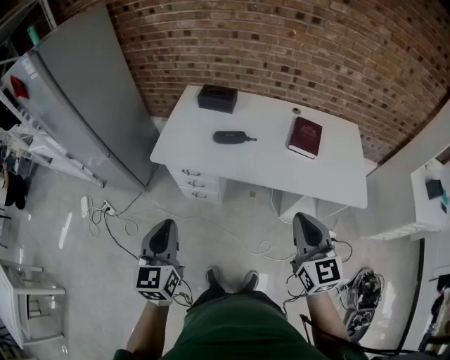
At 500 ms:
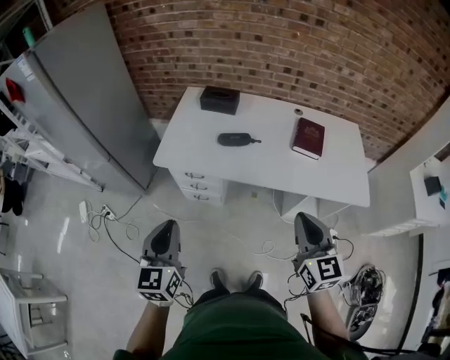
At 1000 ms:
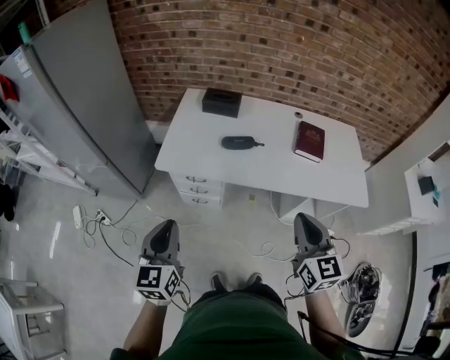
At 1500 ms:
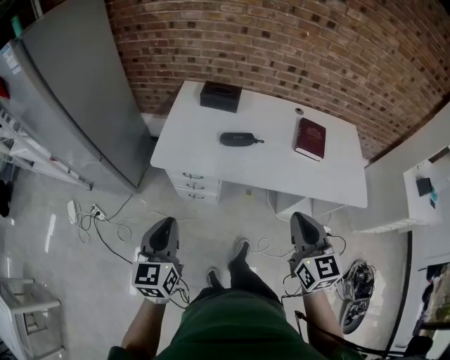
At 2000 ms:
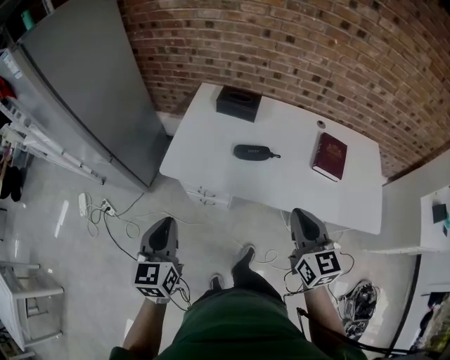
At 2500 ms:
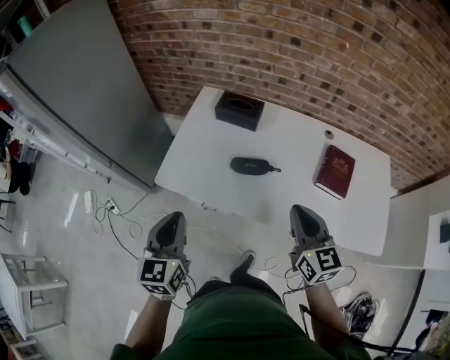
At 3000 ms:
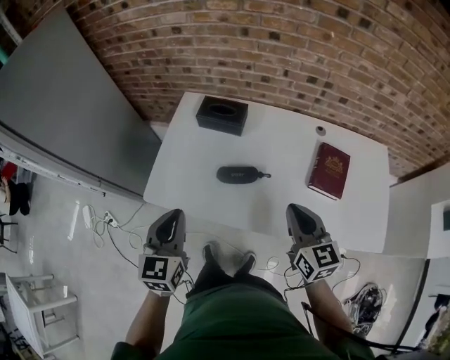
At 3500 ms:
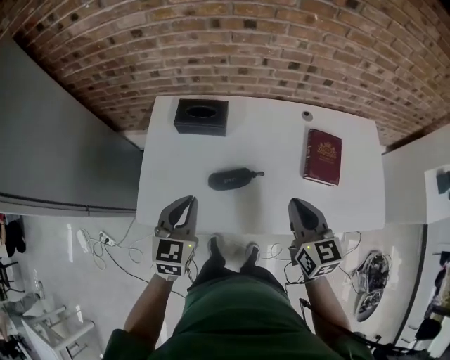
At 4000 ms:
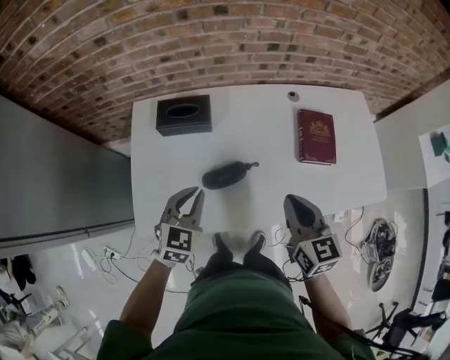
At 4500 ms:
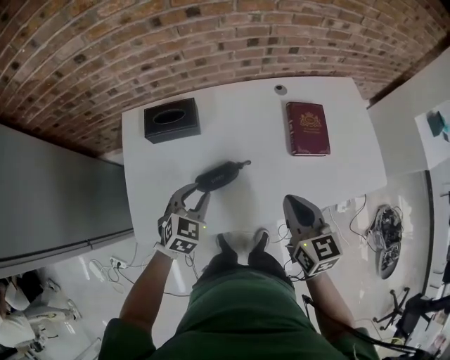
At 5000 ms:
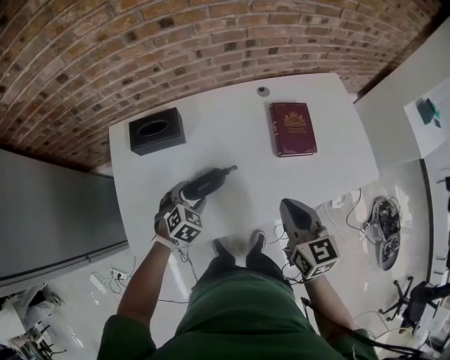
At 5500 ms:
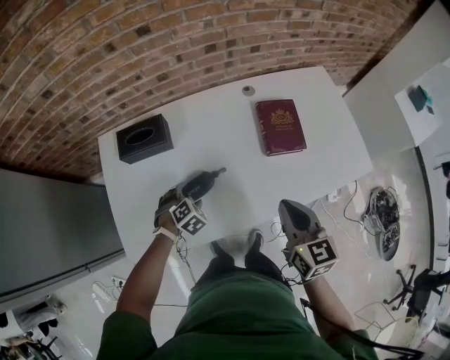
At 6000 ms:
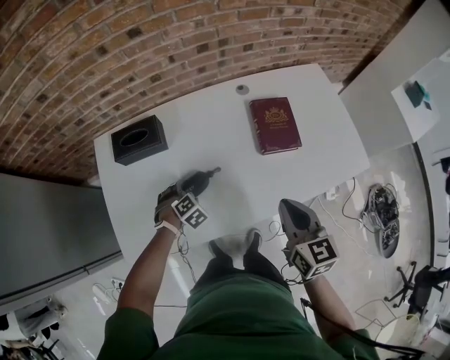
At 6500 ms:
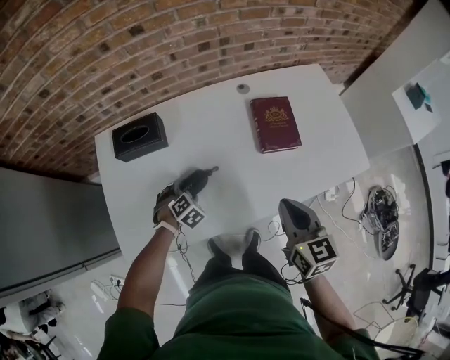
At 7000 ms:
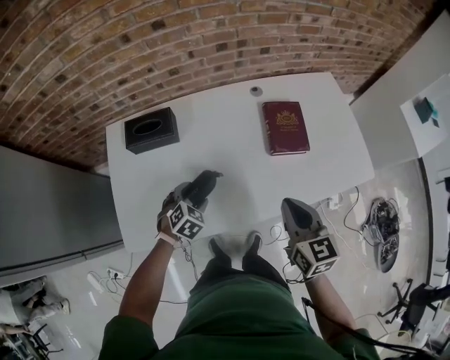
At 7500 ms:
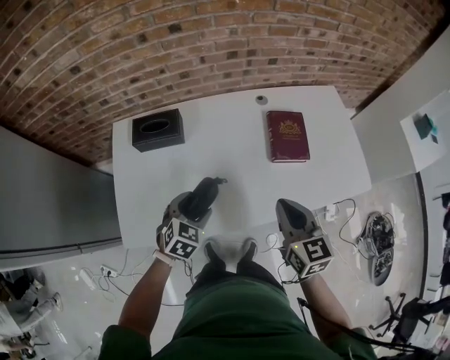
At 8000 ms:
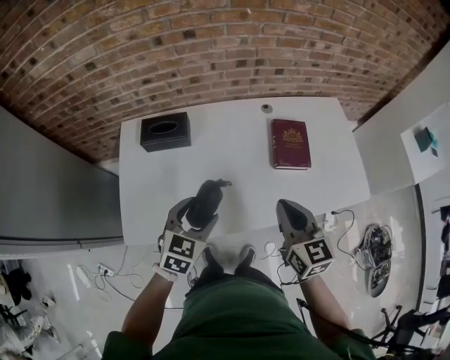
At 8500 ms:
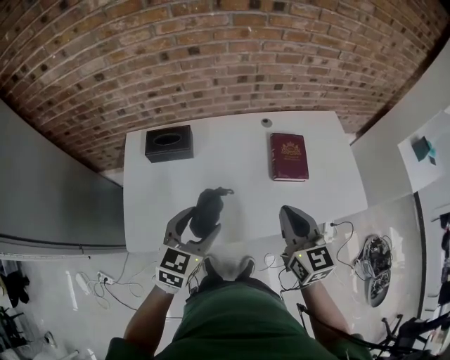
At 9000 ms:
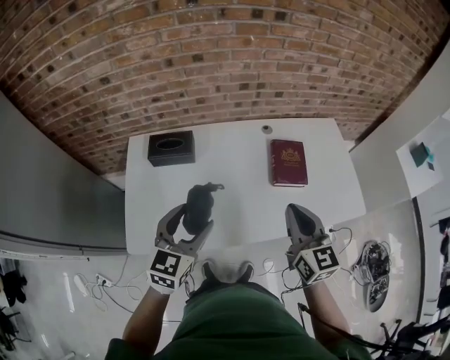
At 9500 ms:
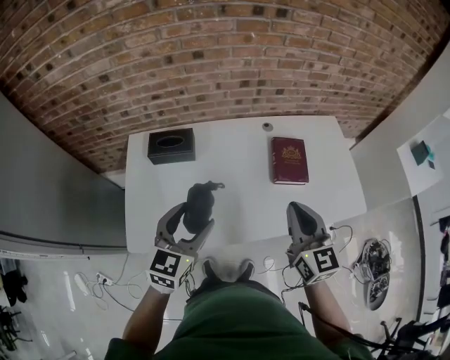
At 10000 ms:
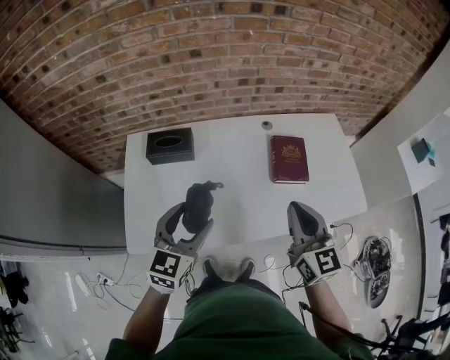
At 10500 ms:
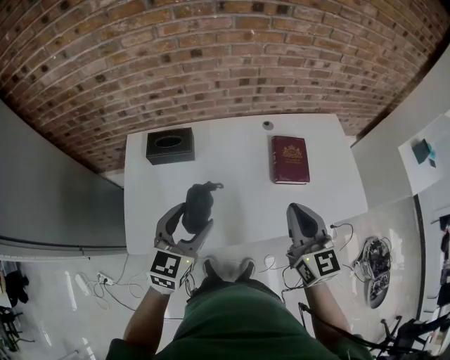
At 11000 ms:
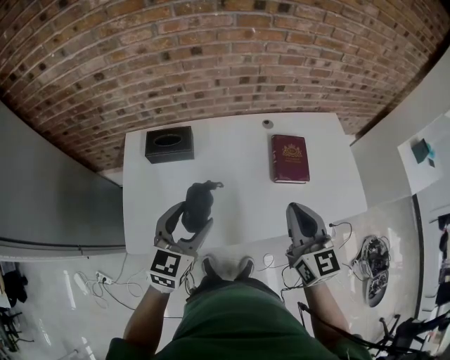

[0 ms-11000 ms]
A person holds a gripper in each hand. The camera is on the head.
0 ms to 2000 ms: The two grippers go roughly 20 cm forward and to the left.
2000 ms to 3500 ms: The left gripper travels forward and to the right by about 30 cm, and rotates roughly 30 degrees; the right gripper travels forward and to the right by about 20 cm.
3500 ms to 5500 ms: The left gripper heads downward and to the right, covering roughly 25 cm, tips its fingers downward by approximately 40 degrees, and opens. The right gripper shifts some 10 cm to the right.
5500 ms to 7500 ms: The left gripper shifts some 15 cm upward and backward, and rotates some 30 degrees.
7500 ms to 9000 ms: The left gripper moves upward, approximately 20 cm, and turns by some 30 degrees. Meanwhile the right gripper moves upward, roughly 10 cm.
9000 ms to 11000 ms: The grippers make only small movements.

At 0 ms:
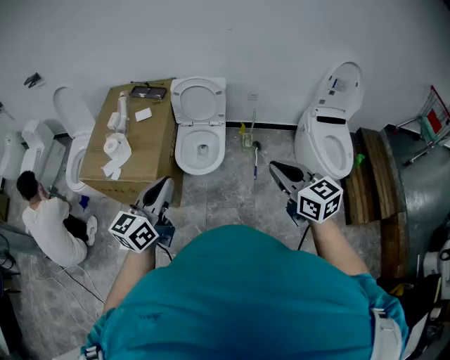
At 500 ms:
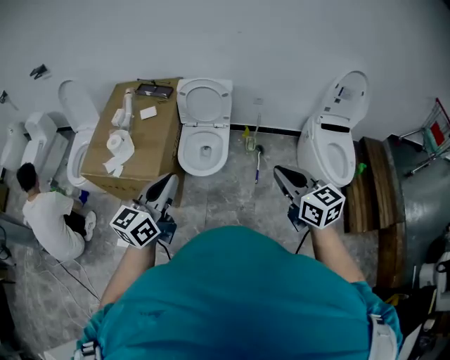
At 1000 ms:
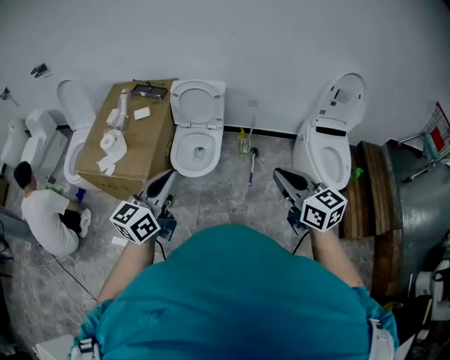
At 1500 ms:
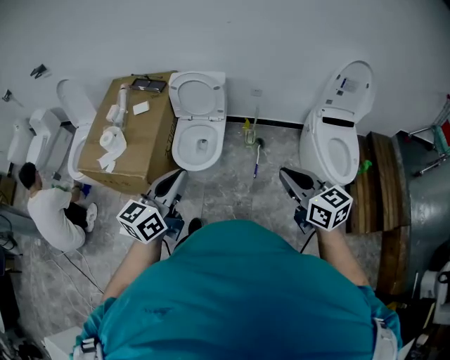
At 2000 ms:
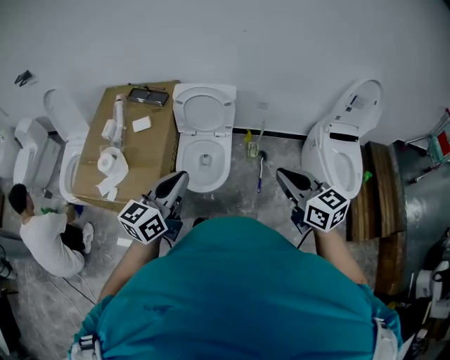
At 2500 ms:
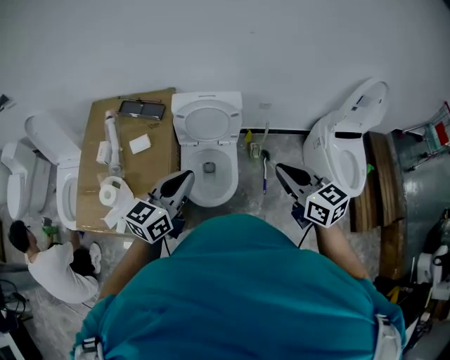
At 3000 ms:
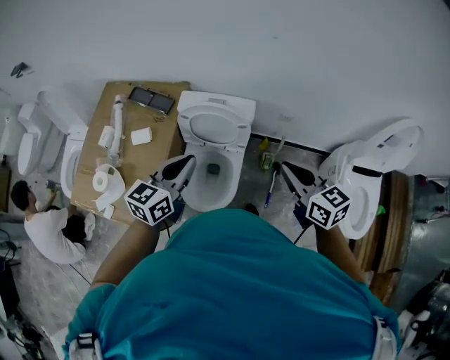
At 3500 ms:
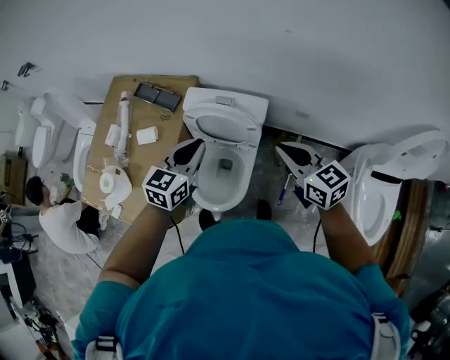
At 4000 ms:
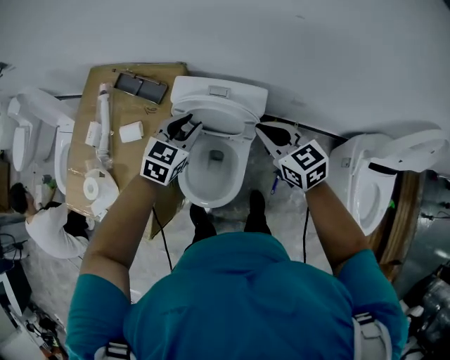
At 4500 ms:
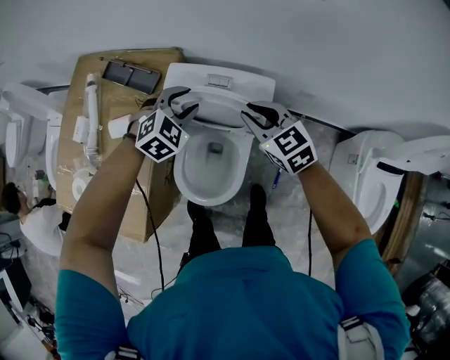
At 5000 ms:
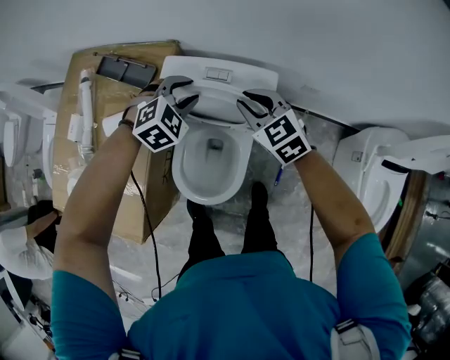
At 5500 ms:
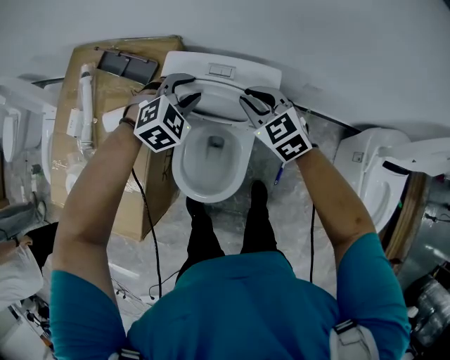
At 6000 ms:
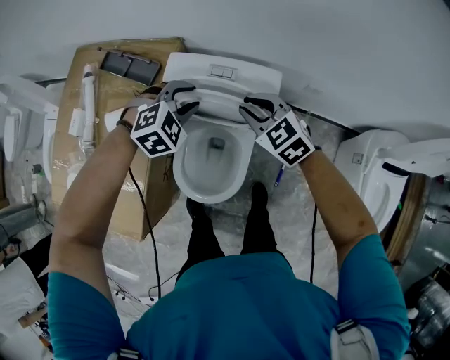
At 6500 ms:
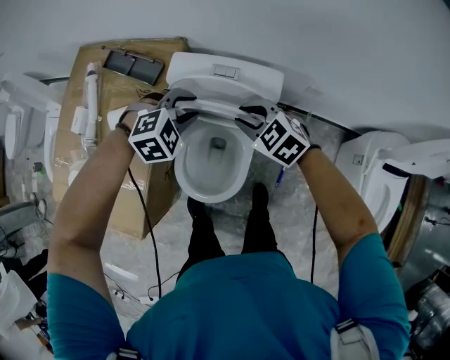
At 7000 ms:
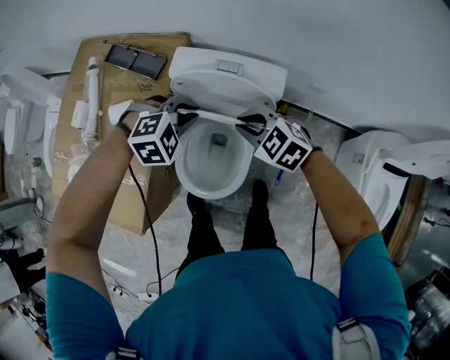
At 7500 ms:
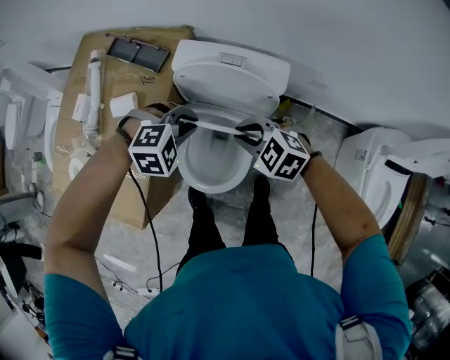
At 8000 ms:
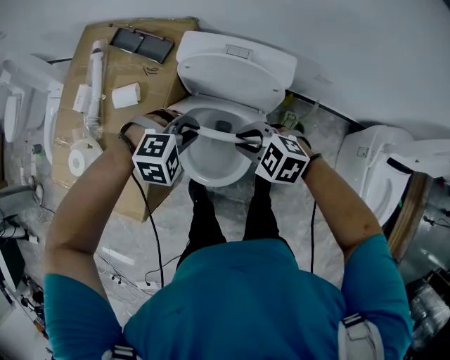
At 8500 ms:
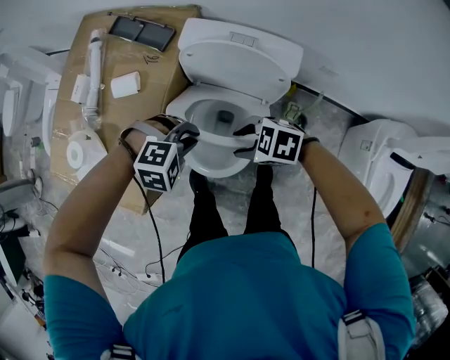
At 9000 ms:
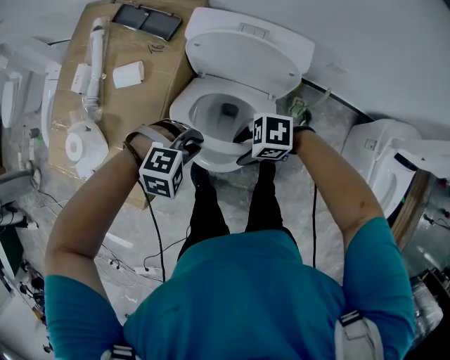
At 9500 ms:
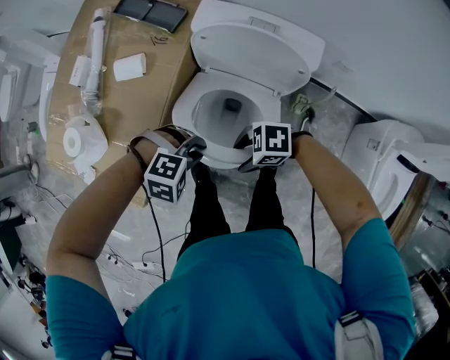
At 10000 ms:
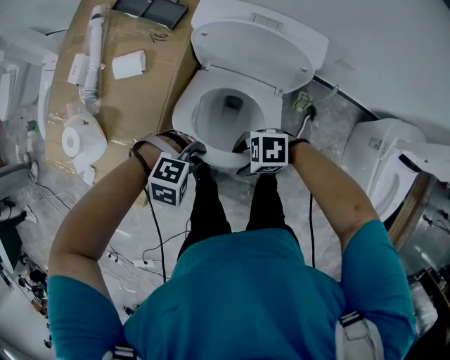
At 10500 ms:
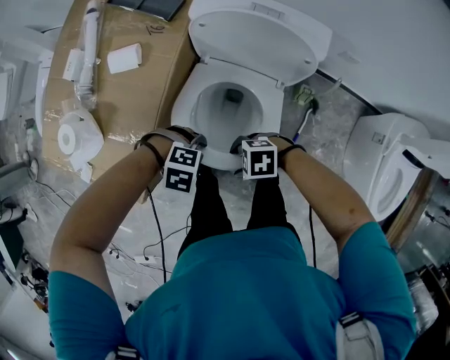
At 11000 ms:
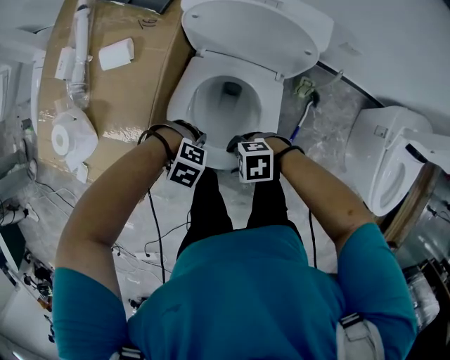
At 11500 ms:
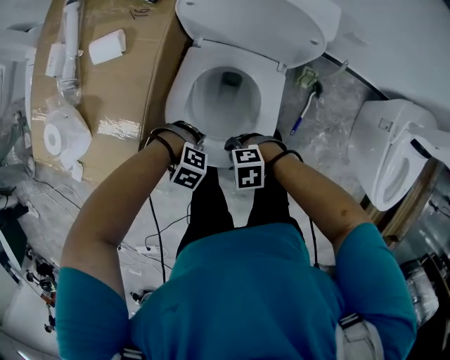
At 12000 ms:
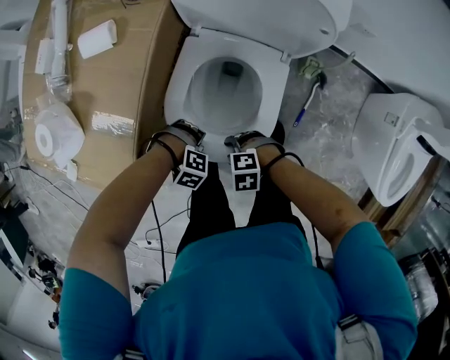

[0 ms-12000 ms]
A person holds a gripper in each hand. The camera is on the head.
0 ms to 2000 ms: Both grippers move forward, roughly 20 cm.
2000 ms to 4000 ms: The pair of grippers is taken forward, some 50 cm. The left gripper travels downward by approximately 20 cm, and tilts its fingers approximately 30 degrees downward.
4000 ms to 6000 ms: The left gripper travels downward by about 10 cm, and twists roughly 40 degrees clockwise, seen from behind. Meanwhile the right gripper heads downward and forward, covering roughly 15 cm, and changes its angle by some 20 degrees.
6000 ms to 8000 ms: The left gripper shifts by approximately 15 cm, rotates about 20 degrees, and closes up. The right gripper moves approximately 15 cm, and swivels roughly 30 degrees.
8000 ms to 10000 ms: The left gripper moves some 15 cm; the right gripper ends up some 20 cm from where it was, swivels some 40 degrees, and opens.
10000 ms to 12000 ms: The two grippers go some 20 cm downward. The left gripper changes its angle by roughly 30 degrees, and opens. The right gripper rotates roughly 20 degrees.

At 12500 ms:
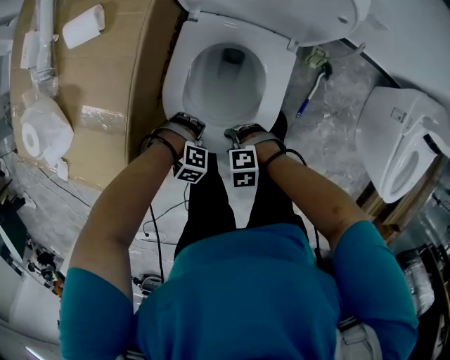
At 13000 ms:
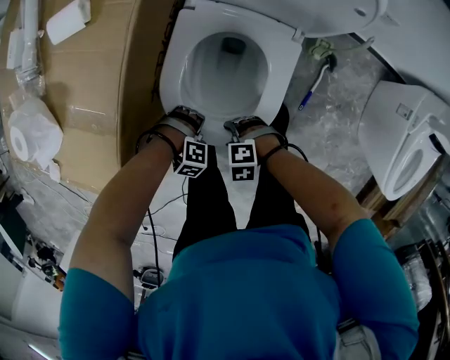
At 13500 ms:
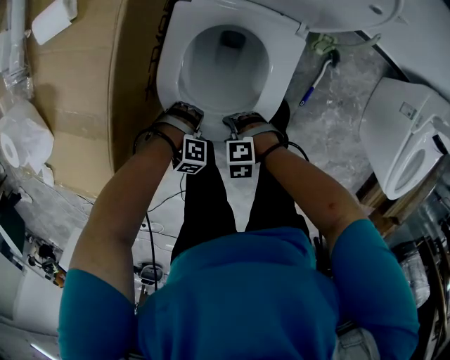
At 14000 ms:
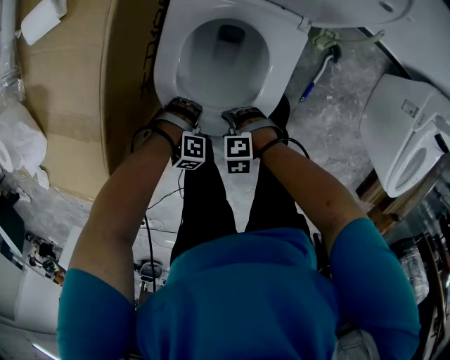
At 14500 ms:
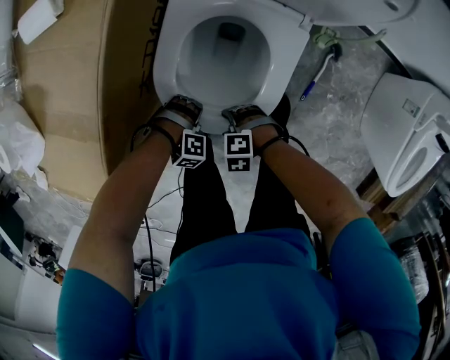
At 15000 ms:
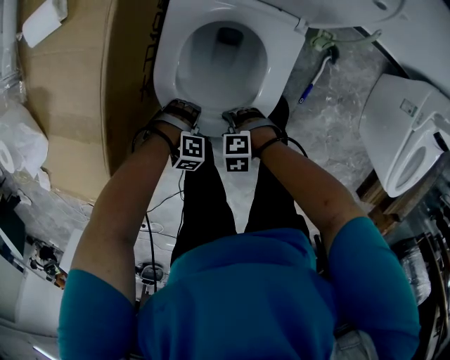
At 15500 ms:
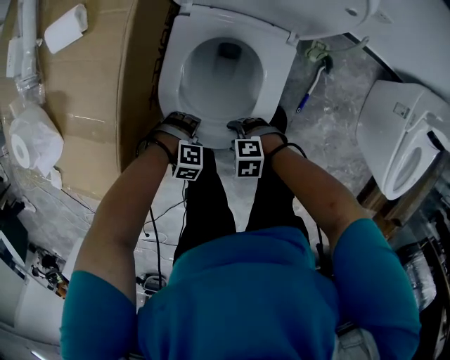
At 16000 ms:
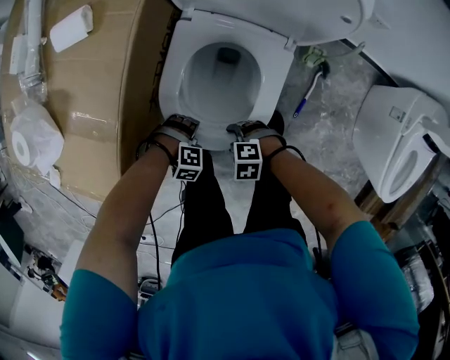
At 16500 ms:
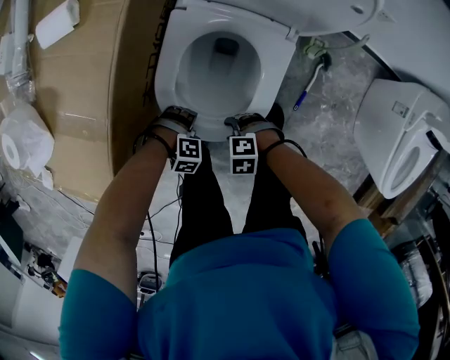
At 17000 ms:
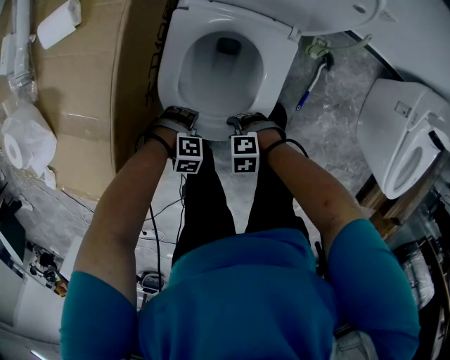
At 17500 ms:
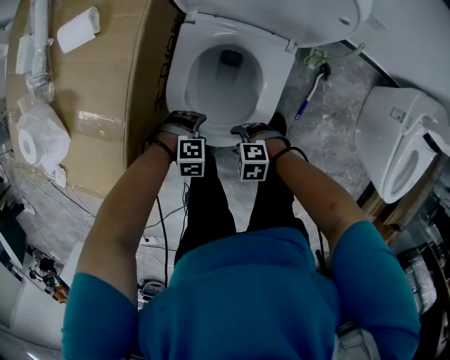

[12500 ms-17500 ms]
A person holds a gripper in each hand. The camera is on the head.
12500 ms to 15000 ms: Both grippers travel together downward, some 10 cm.
15000 ms to 17500 ms: The two grippers go about 5 cm upward. The left gripper rotates about 20 degrees.
